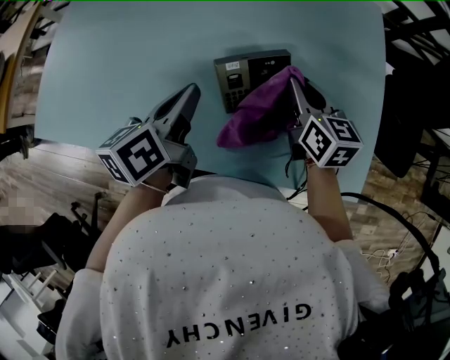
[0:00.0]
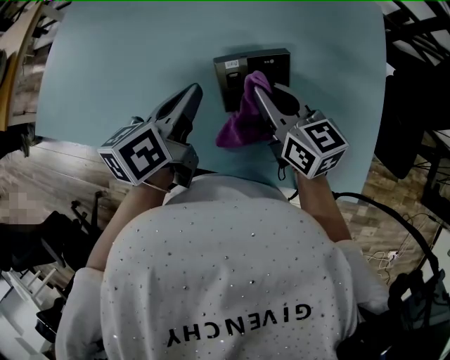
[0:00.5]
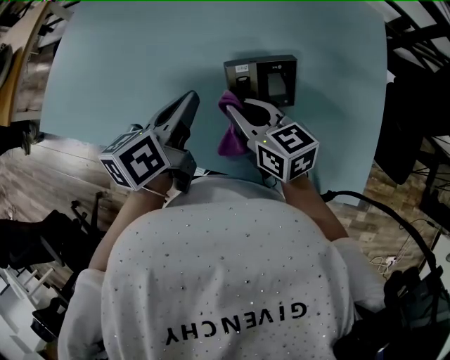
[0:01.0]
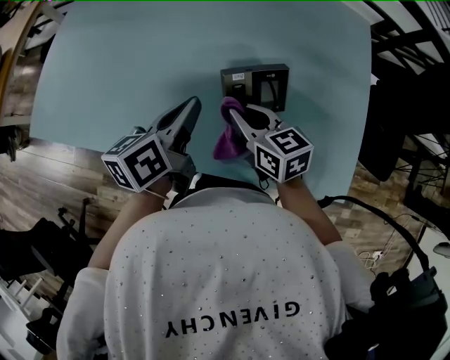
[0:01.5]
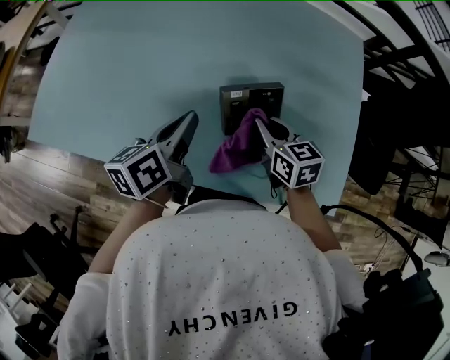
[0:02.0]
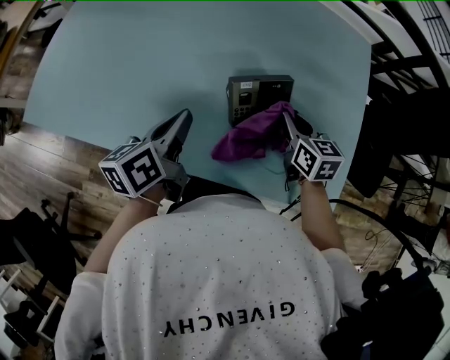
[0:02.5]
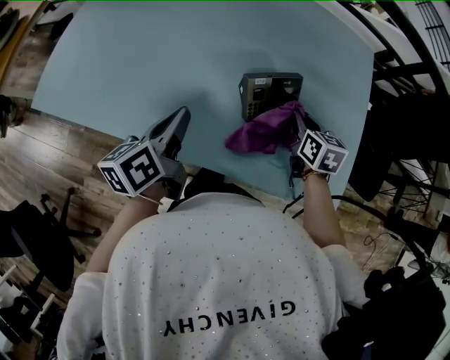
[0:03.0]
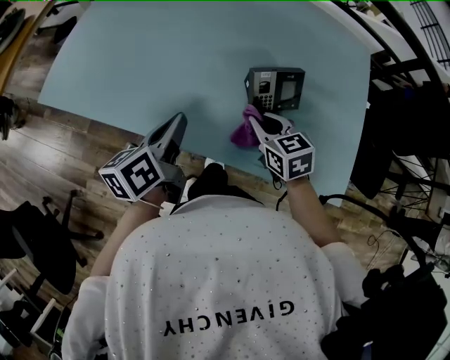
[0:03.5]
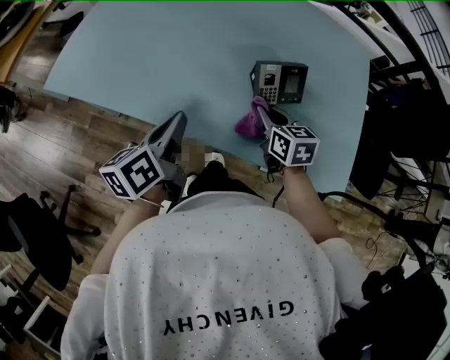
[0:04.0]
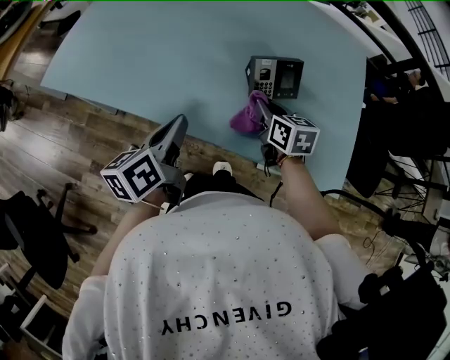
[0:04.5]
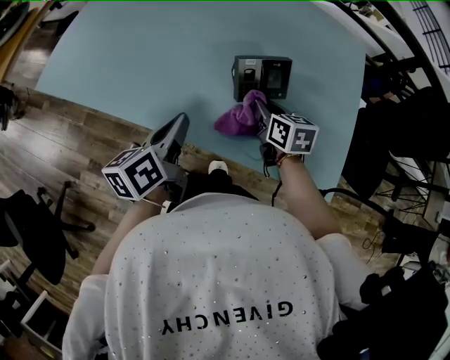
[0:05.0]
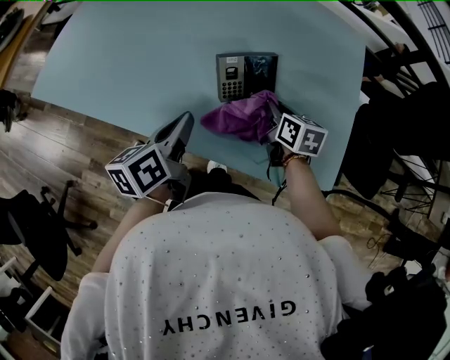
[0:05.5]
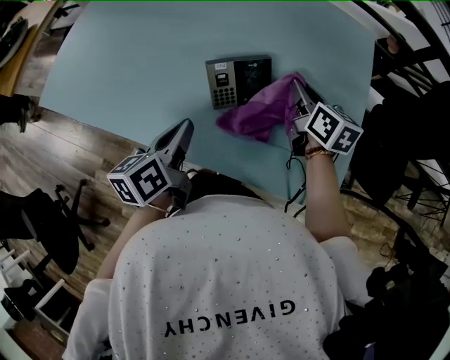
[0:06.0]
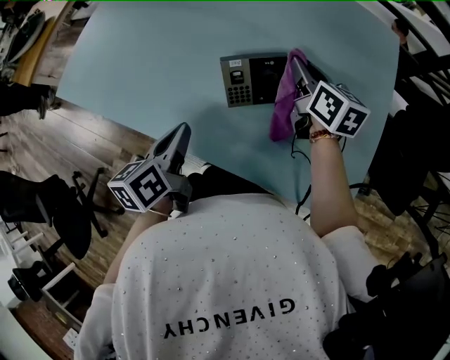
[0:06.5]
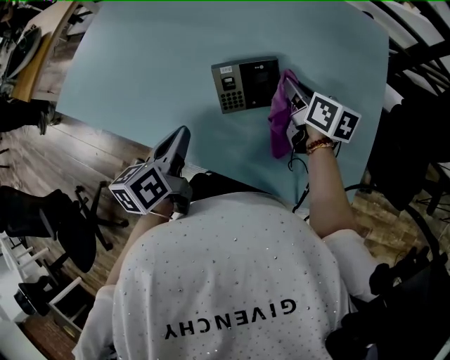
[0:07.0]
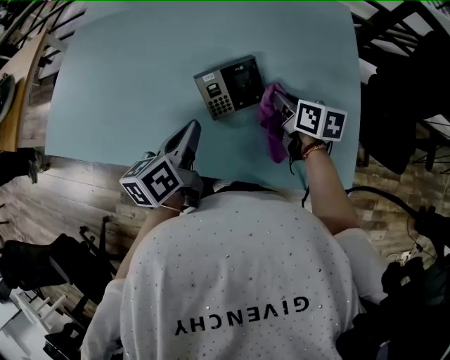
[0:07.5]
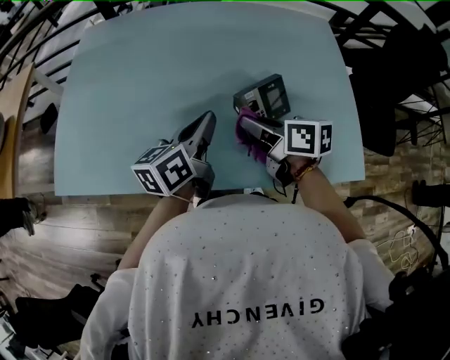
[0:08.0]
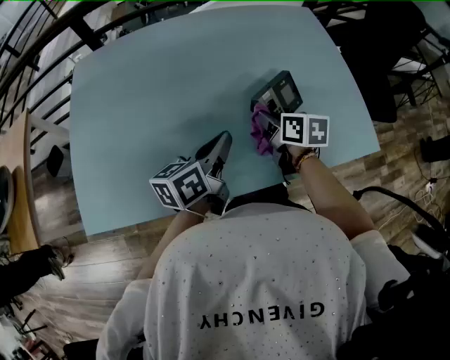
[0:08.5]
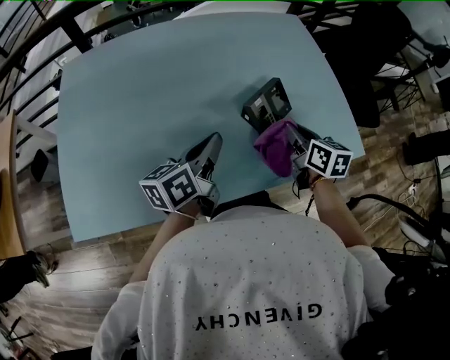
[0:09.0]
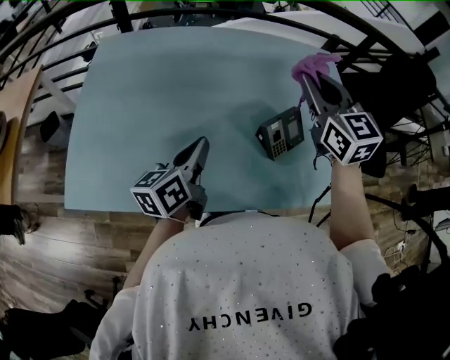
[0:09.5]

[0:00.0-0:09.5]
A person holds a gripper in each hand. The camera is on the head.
0:00.0 to 0:02.0: The right gripper goes some 5 cm to the left.
0:02.0 to 0:04.0: The left gripper moves backward and to the left, some 15 cm. The right gripper goes about 10 cm to the left and backward.
0:04.0 to 0:05.5: Both grippers move to the right, some 15 cm.
0:05.5 to 0:07.5: The right gripper moves approximately 10 cm forward and comes back. Meanwhile the left gripper shifts by some 5 cm.
0:07.5 to 0:09.5: The right gripper moves up and down over about 30 cm, changing direction 2 times, and rolls counterclockwise, seen from behind, by approximately 40 degrees. Meanwhile the left gripper moves about 20 cm.

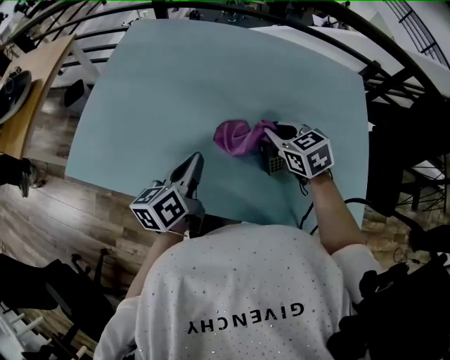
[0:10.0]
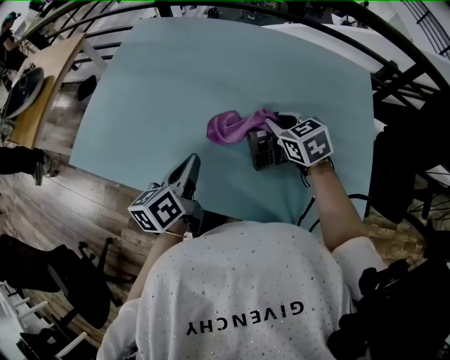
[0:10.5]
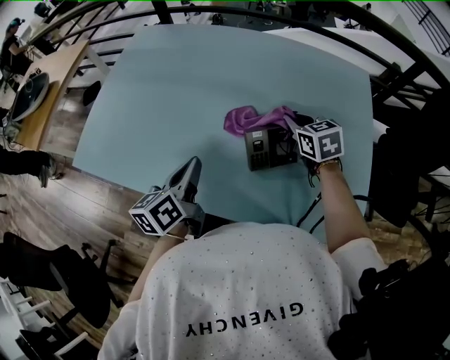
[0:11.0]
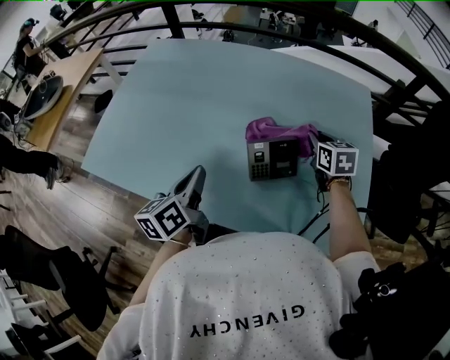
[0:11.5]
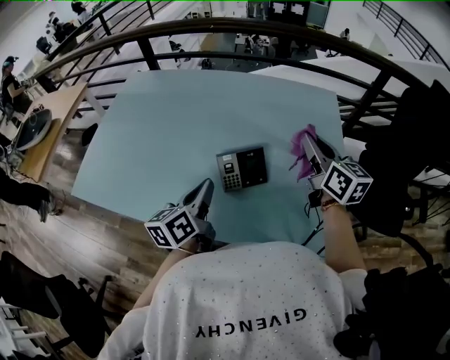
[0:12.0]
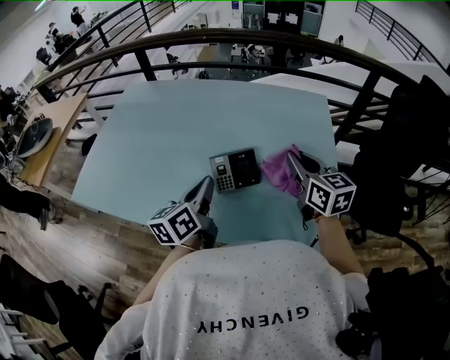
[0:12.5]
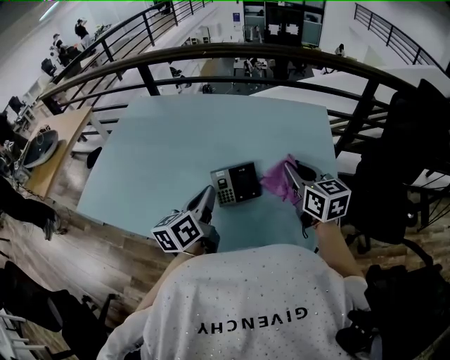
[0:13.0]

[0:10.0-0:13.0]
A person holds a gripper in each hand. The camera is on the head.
0:10.0 to 0:11.5: The left gripper moves to the right, about 10 cm; the right gripper is displaced to the right by about 20 cm, and rotates some 20 degrees.
0:11.5 to 0:13.0: The left gripper is displaced to the right by approximately 15 cm. Meanwhile the right gripper travels upward and backward by some 15 cm, and turns by approximately 20 degrees.

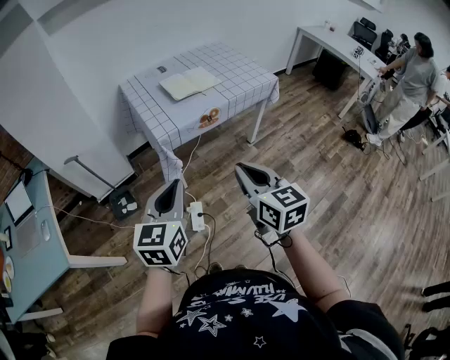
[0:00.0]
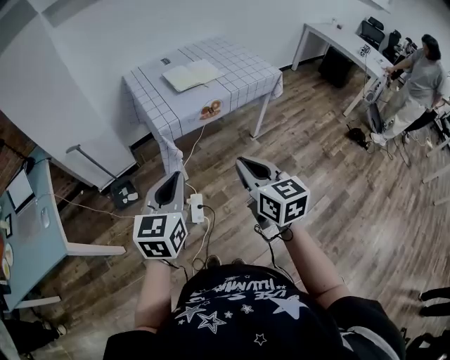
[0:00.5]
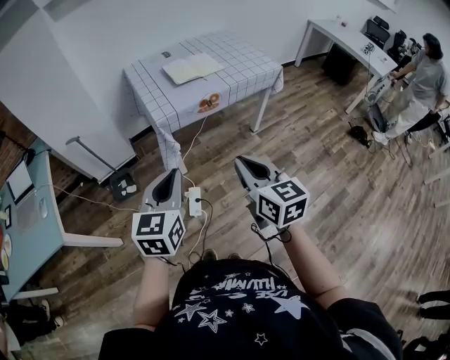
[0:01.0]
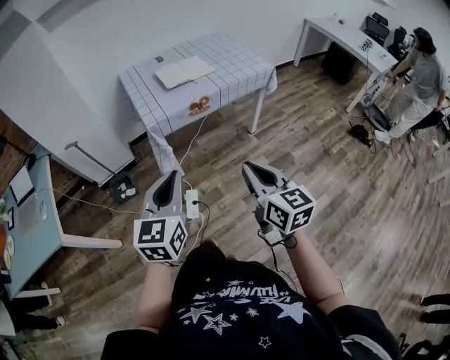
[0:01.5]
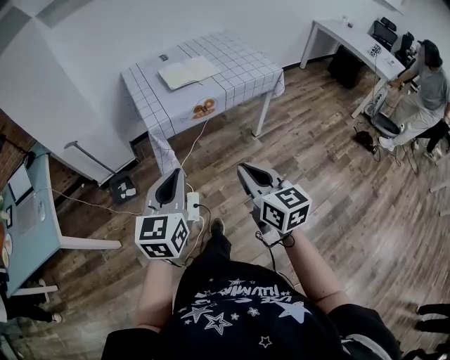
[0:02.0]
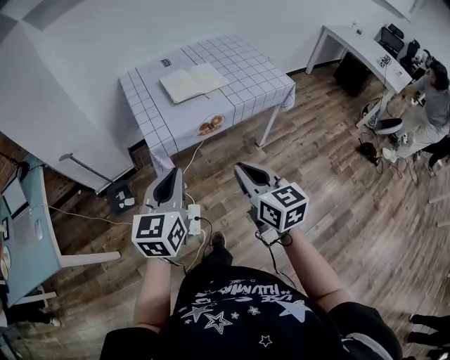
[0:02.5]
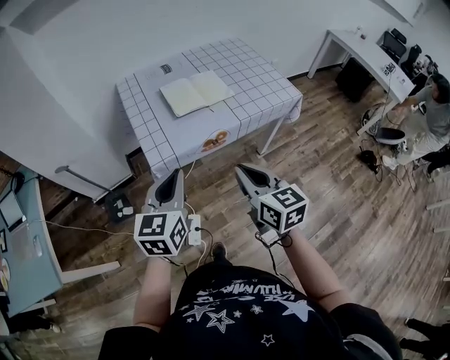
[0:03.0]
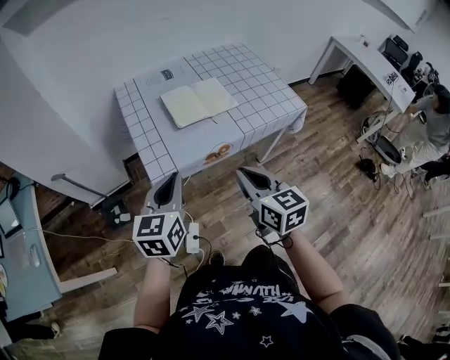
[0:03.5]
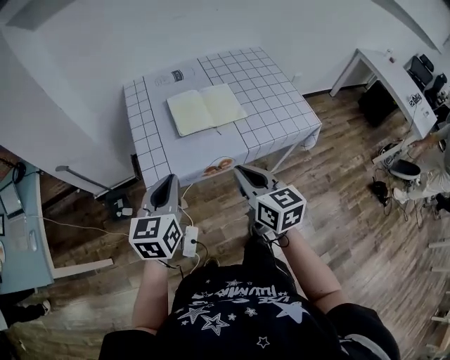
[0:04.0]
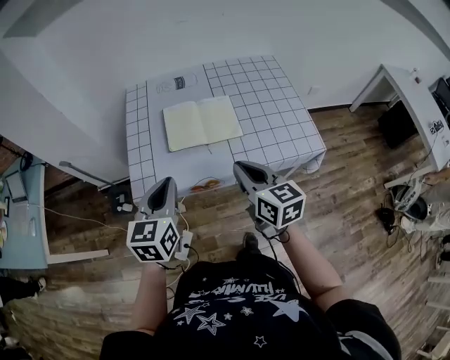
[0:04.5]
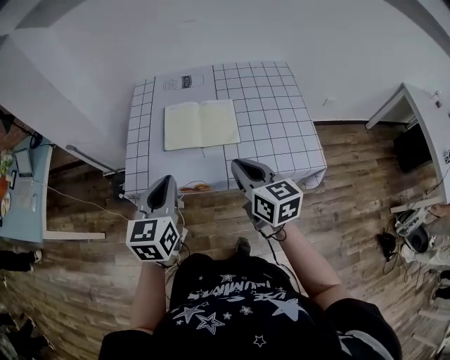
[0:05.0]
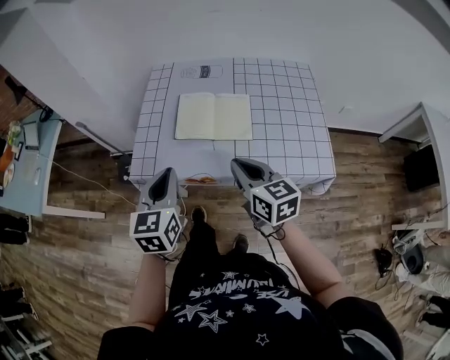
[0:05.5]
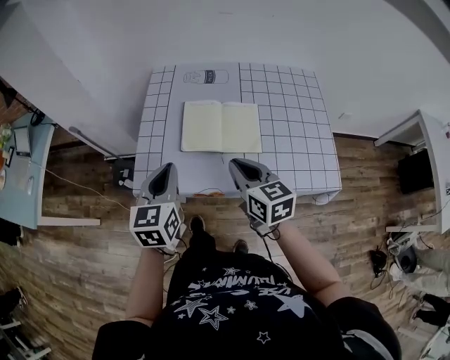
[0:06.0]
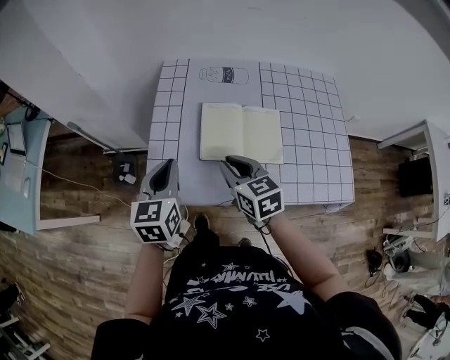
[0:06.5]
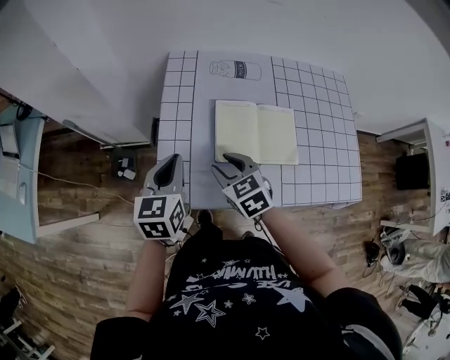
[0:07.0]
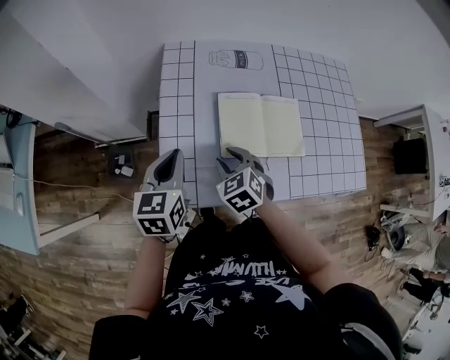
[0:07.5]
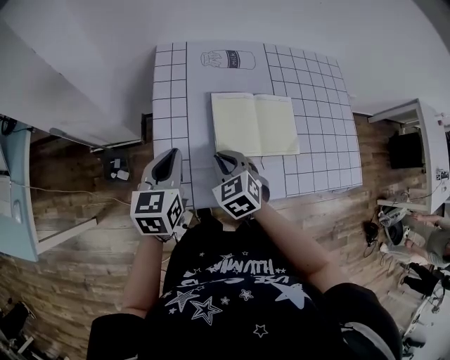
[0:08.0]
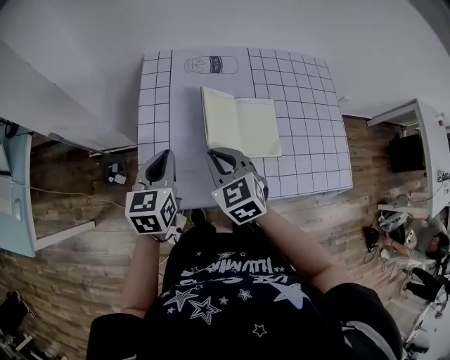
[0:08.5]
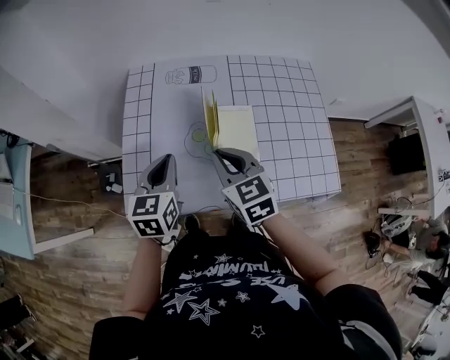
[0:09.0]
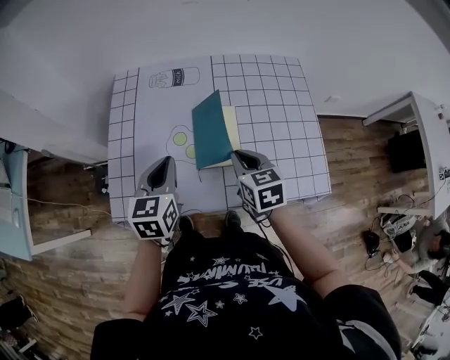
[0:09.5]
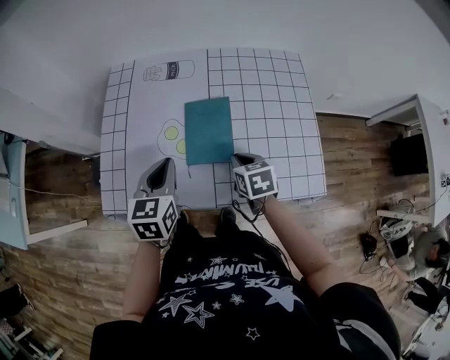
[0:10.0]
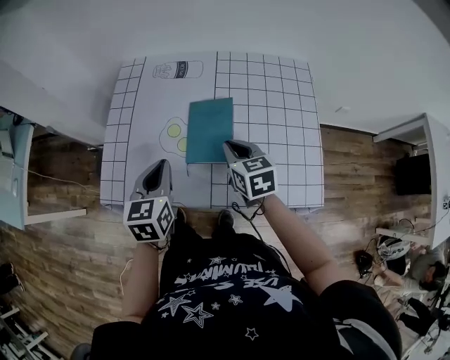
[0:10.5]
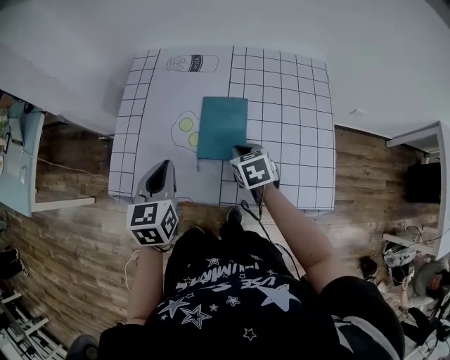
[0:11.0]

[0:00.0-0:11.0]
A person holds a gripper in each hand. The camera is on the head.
0:00.0 to 0:02.0: The grippers both shift to the right by about 10 cm.
0:02.0 to 0:03.5: The two grippers go about 25 cm forward.
0:03.5 to 0:05.5: The left gripper changes place by about 15 cm, and rotates about 30 degrees. The right gripper ends up some 20 cm from where it was, and changes its angle by some 30 degrees.
0:05.5 to 0:07.5: The grippers both shift forward, to the left and downward by roughly 30 cm. The right gripper tilts its fingers approximately 30 degrees downward, and opens its fingers.
0:07.5 to 0:09.0: The left gripper travels to the right by about 15 cm. The right gripper moves to the right and upward, roughly 20 cm, swivels roughly 30 degrees, and closes its fingers.
0:09.0 to 0:11.0: The right gripper moves downward and to the right, about 20 cm, and turns by about 20 degrees; the left gripper is displaced to the right and backward by about 10 cm.

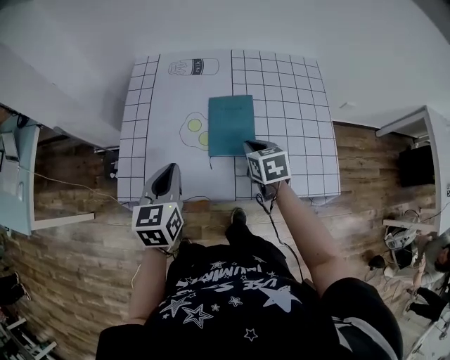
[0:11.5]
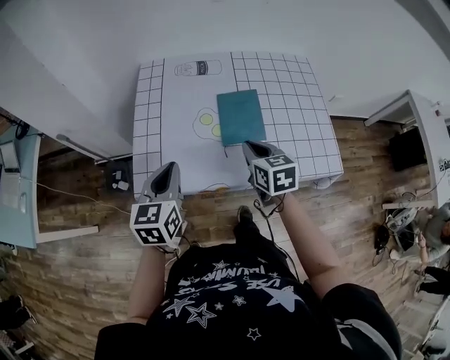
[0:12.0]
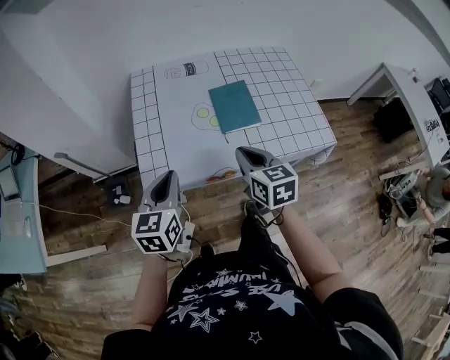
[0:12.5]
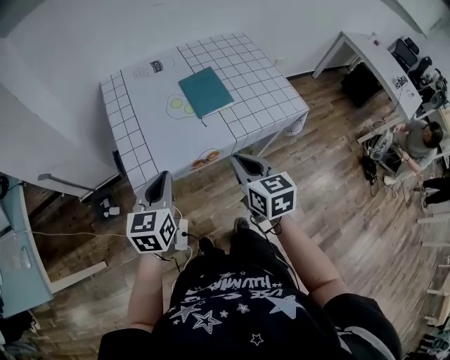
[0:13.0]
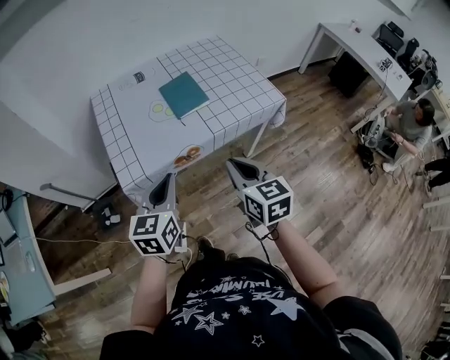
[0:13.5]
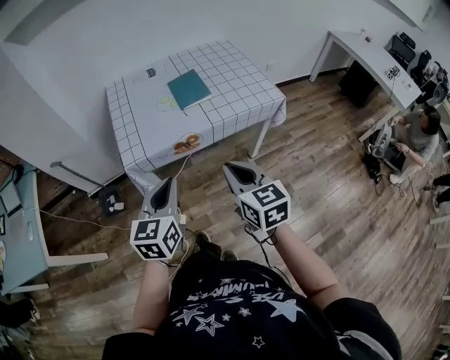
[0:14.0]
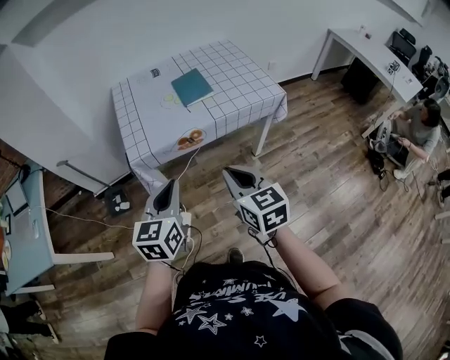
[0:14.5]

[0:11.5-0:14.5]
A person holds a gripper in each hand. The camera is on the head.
0:11.5 to 0:13.0: The left gripper changes place by roughly 15 cm, and turns by approximately 30 degrees, while the right gripper ends up roughly 30 cm from where it was, and changes its angle by about 30 degrees.
0:13.0 to 0:14.5: The left gripper shifts approximately 20 cm backward and to the right, while the right gripper moves backward, approximately 20 cm.
